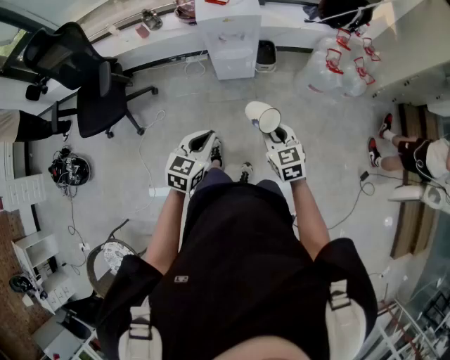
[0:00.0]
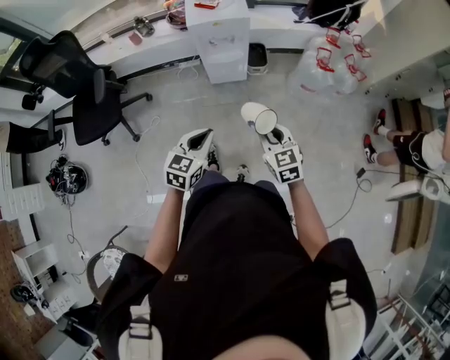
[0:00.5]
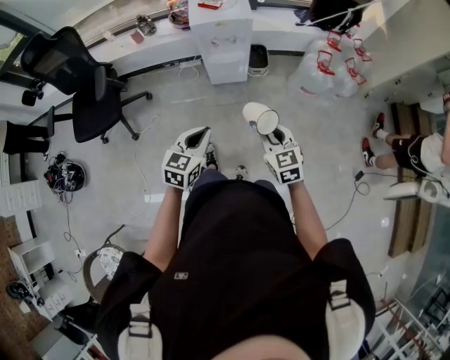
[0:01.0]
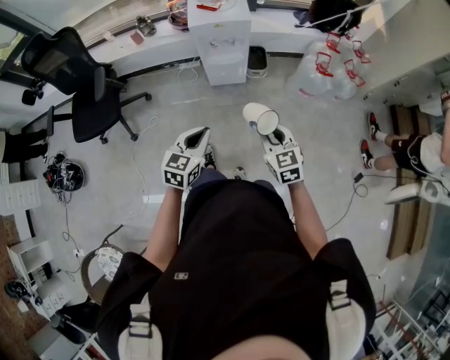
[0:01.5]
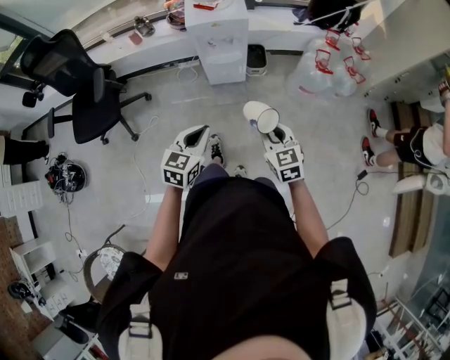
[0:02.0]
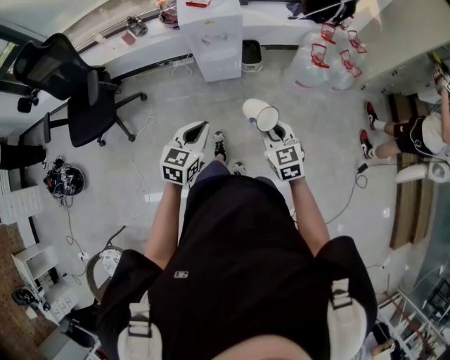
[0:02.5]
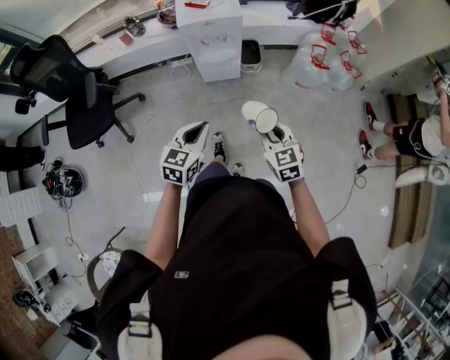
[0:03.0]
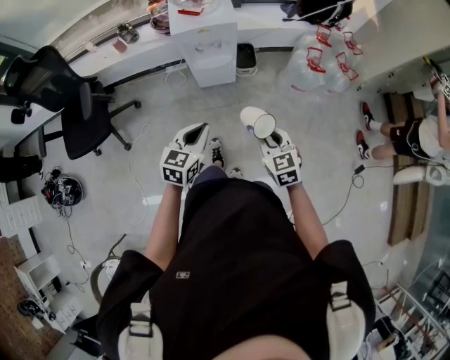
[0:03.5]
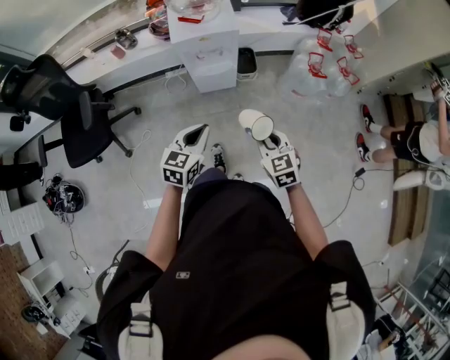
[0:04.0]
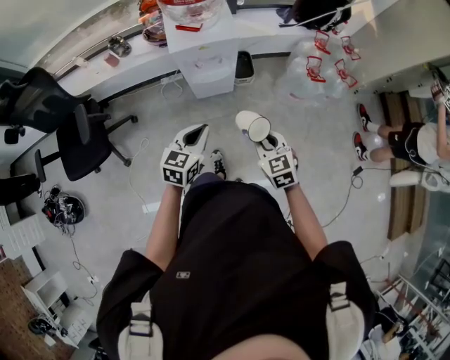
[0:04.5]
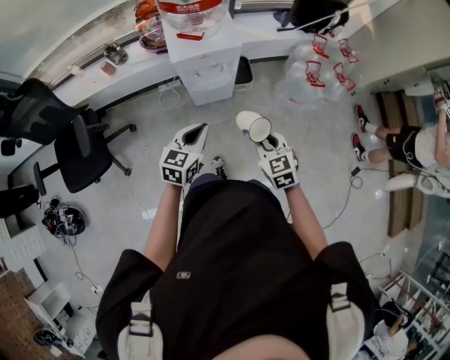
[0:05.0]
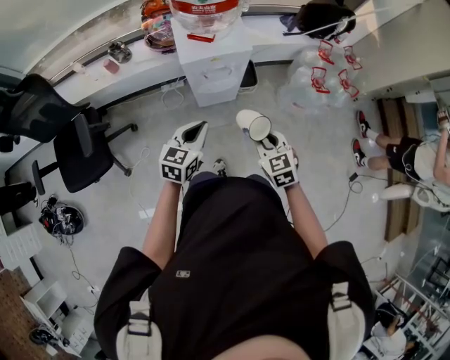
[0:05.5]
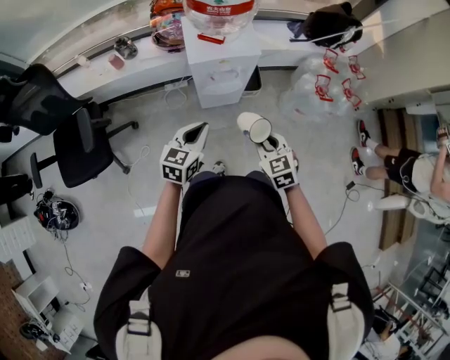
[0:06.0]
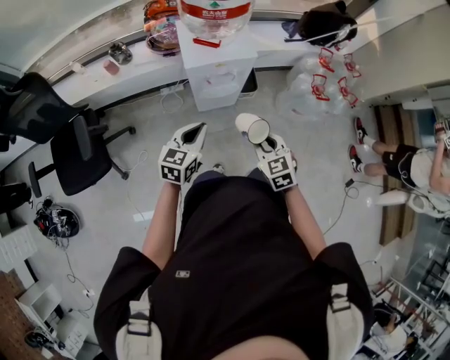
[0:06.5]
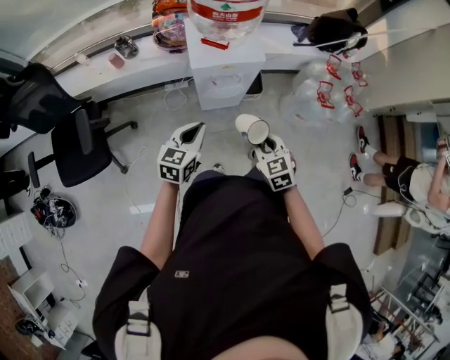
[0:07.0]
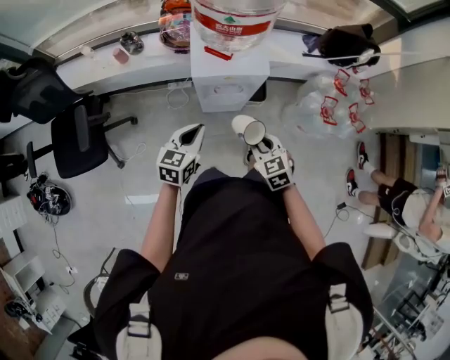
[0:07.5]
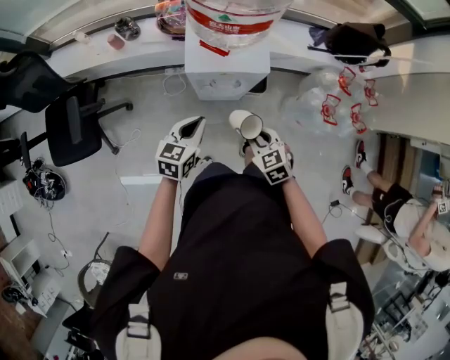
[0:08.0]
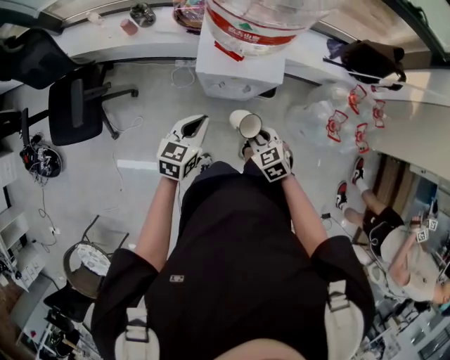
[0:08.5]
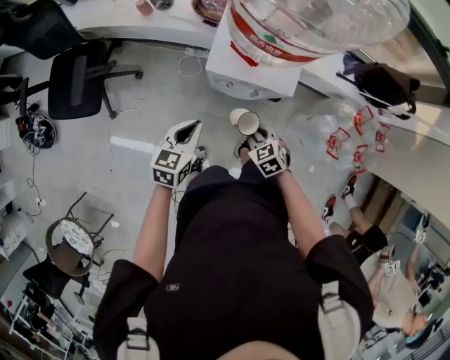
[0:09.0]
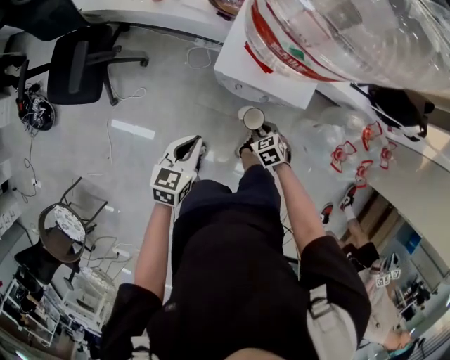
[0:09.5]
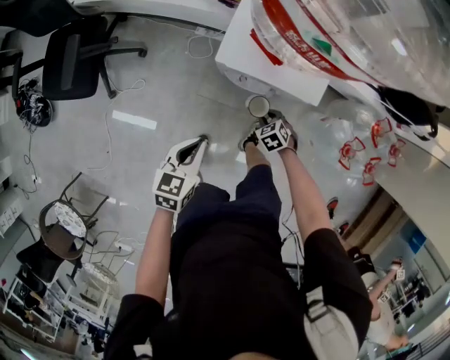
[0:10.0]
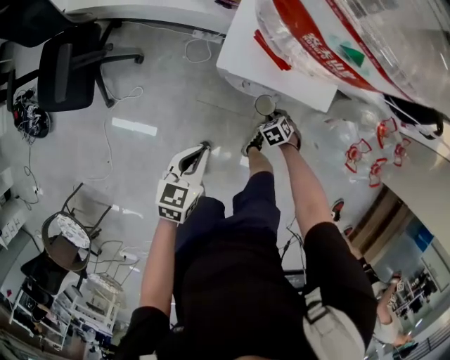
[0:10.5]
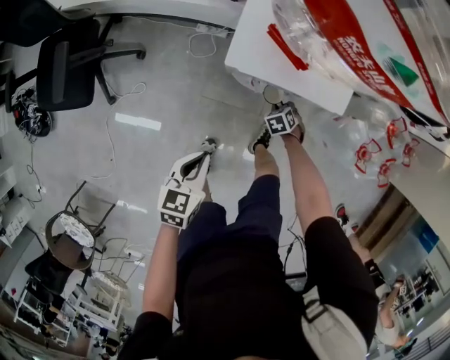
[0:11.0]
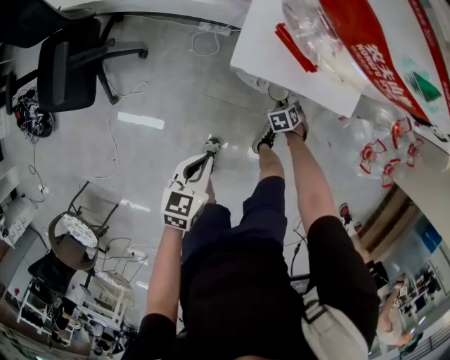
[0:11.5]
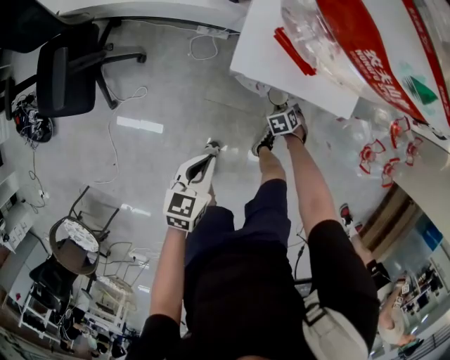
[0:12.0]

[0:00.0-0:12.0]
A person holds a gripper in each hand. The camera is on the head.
0.0 to 2.0 s: The grippers make only small movements.
2.0 to 4.0 s: Both grippers move forward, roughly 10 cm.
4.0 to 6.0 s: The grippers both shift forward and to the left by roughly 15 cm.
6.0 to 8.0 s: The right gripper moves forward and downward, about 15 cm; the left gripper goes about 10 cm forward.
8.0 to 10.0 s: The left gripper heads downward, covering some 10 cm, and turns by some 20 degrees. The right gripper goes about 30 cm downward, and rotates approximately 30 degrees.
10.0 to 12.0 s: The right gripper moves downward, roughly 10 cm, and swivels roughly 20 degrees. Meanwhile the left gripper travels downward by about 5 cm.

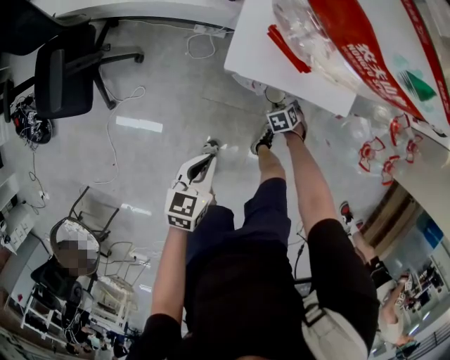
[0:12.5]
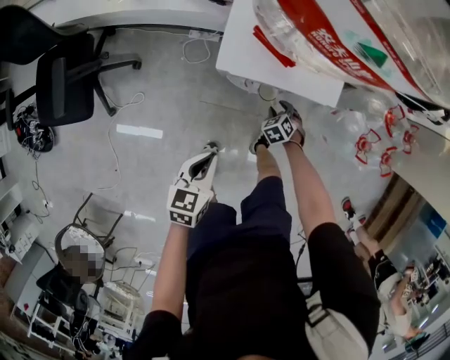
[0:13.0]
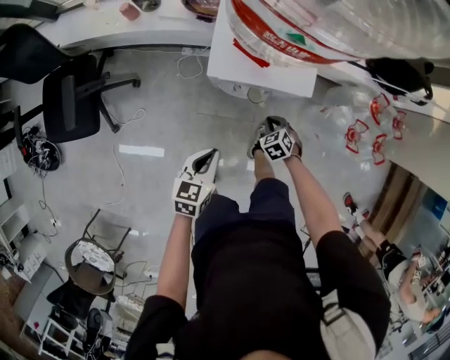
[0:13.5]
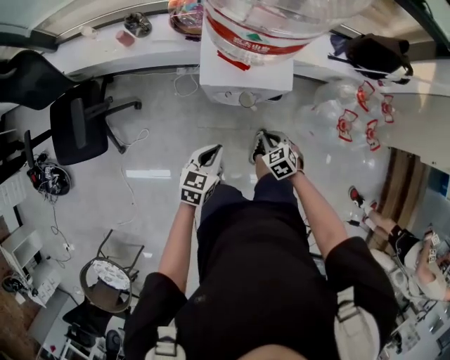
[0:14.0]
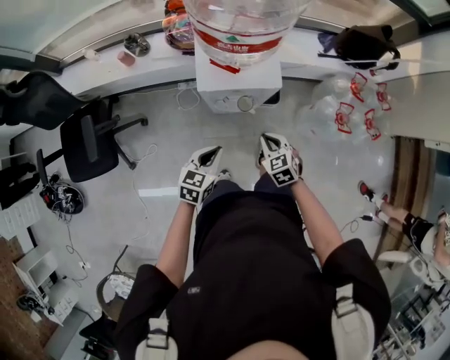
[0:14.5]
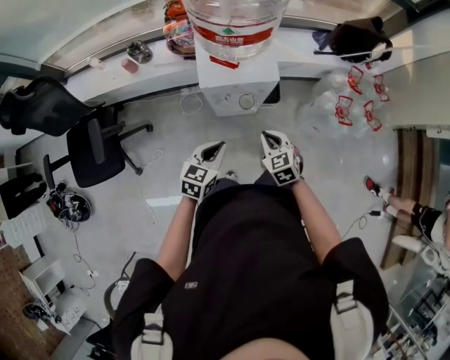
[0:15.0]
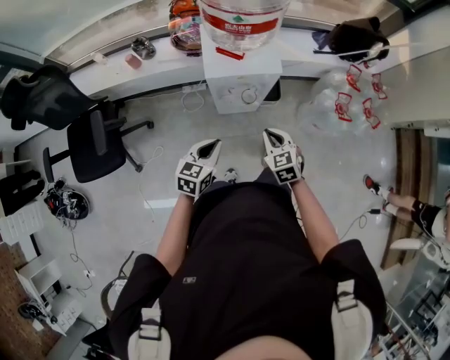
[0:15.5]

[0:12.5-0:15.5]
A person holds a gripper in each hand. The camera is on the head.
12.5 to 14.0 s: The right gripper goes roughly 25 cm upward, and closes. Meanwhile the left gripper heads upward, covering approximately 10 cm.
14.0 to 15.5 s: The left gripper shifts some 10 cm upward and backward. The right gripper moves upward and backward, some 15 cm, and changes its angle by about 20 degrees.

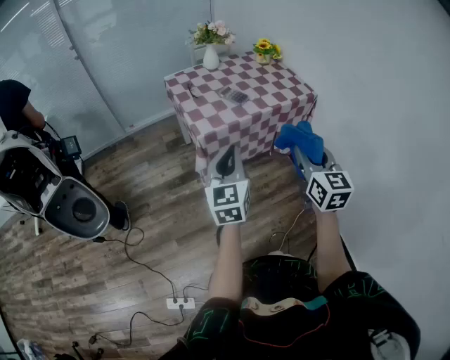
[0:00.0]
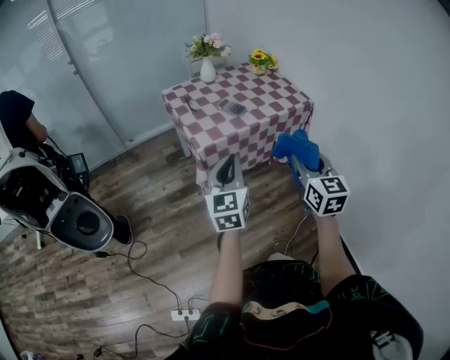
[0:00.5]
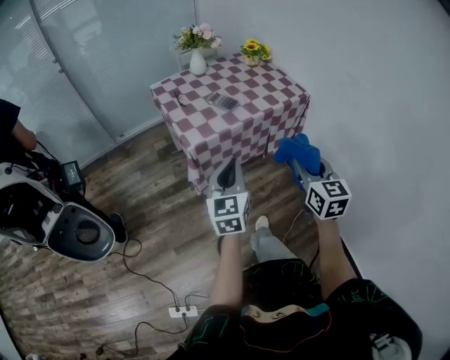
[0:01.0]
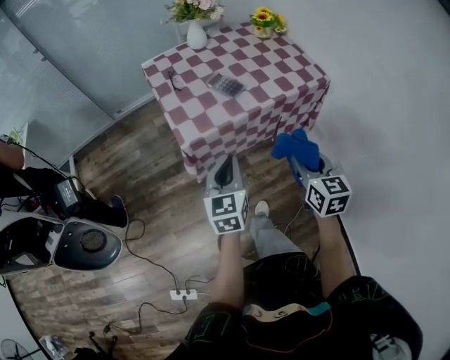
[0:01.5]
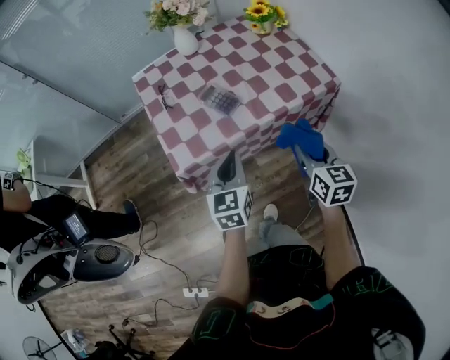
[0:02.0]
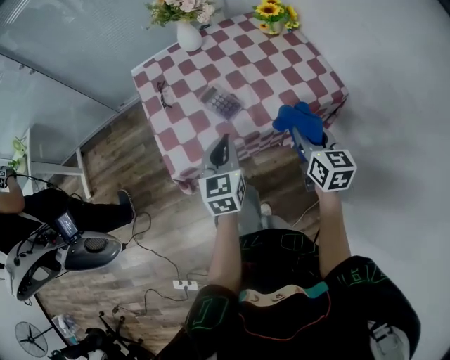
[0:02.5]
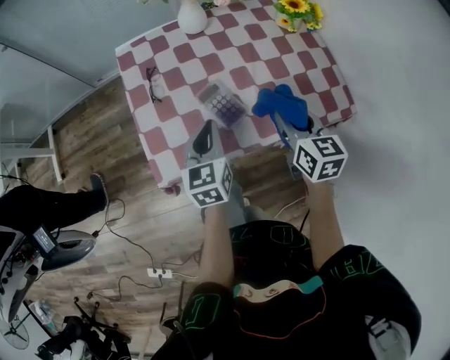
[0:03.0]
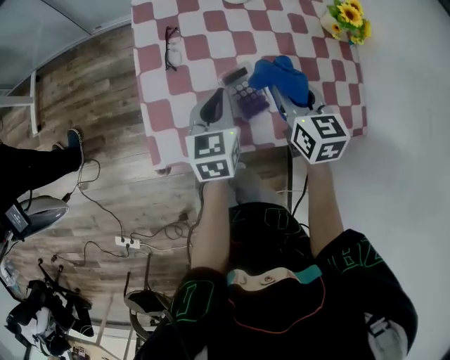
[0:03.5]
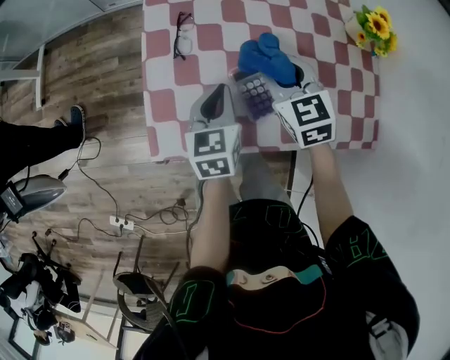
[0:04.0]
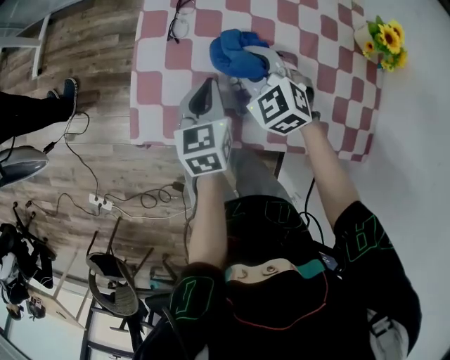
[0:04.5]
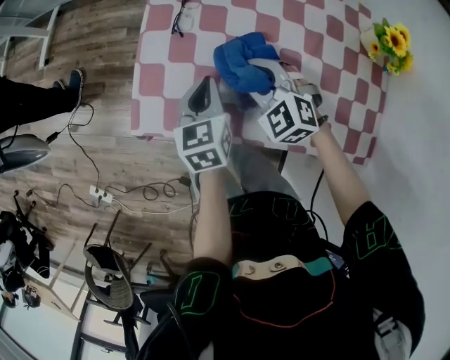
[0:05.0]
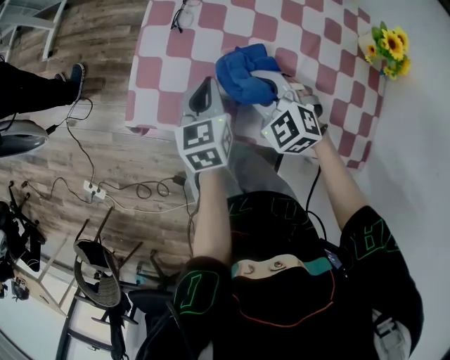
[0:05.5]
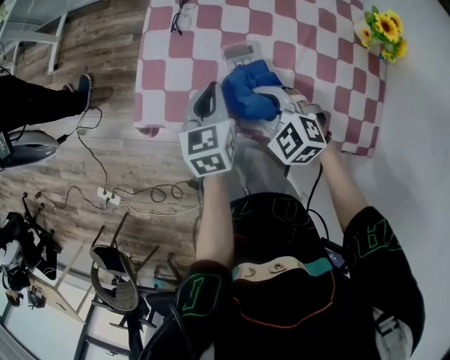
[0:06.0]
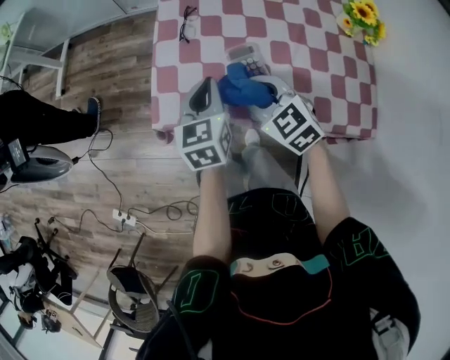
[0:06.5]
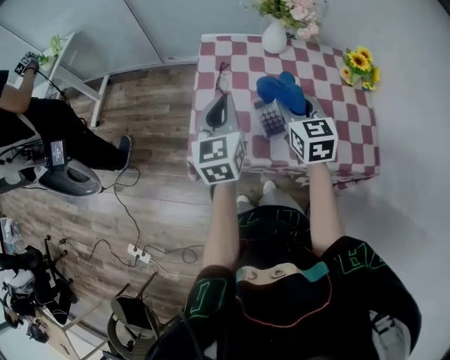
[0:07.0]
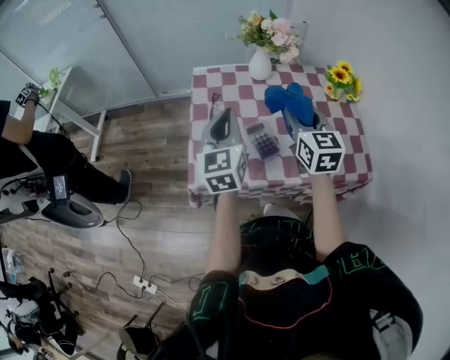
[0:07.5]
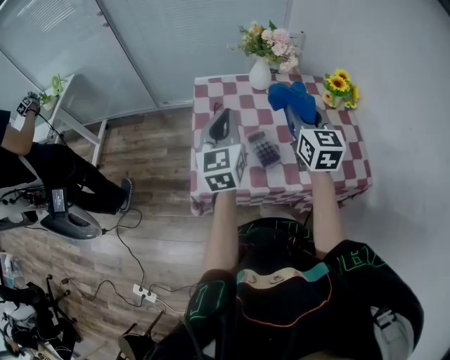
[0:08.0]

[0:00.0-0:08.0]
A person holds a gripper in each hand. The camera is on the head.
0.0 to 2.0 s: The left gripper heads forward, downward and to the right, covering about 30 cm. The right gripper is displaced forward and downward by about 30 cm, and swivels about 20 degrees.
2.0 to 4.0 s: The left gripper changes place by roughly 25 cm, and turns by approximately 30 degrees; the right gripper ends up about 40 cm from where it was, and changes its angle by some 50 degrees.
4.0 to 6.0 s: The left gripper moves roughly 5 cm; the right gripper moves about 15 cm, and swivels some 50 degrees.
6.0 to 8.0 s: The grippers both shift upward by roughly 25 cm. The left gripper swivels approximately 30 degrees. Meanwhile the right gripper points its fingers roughly 40 degrees further upward.

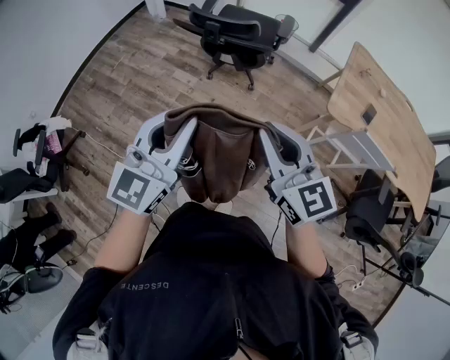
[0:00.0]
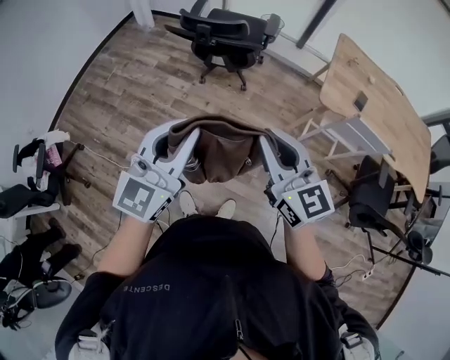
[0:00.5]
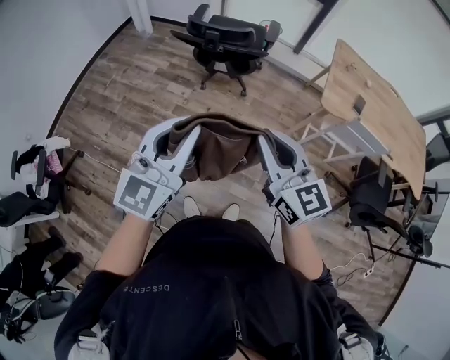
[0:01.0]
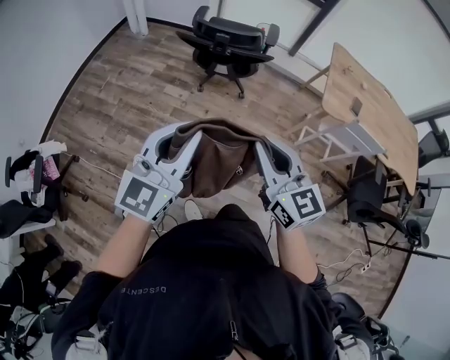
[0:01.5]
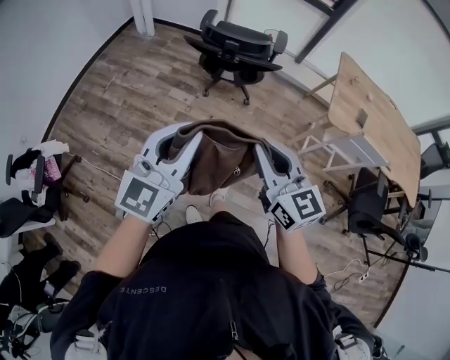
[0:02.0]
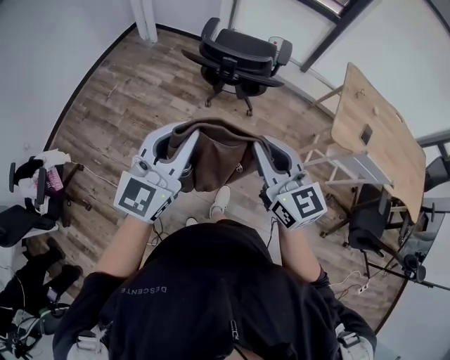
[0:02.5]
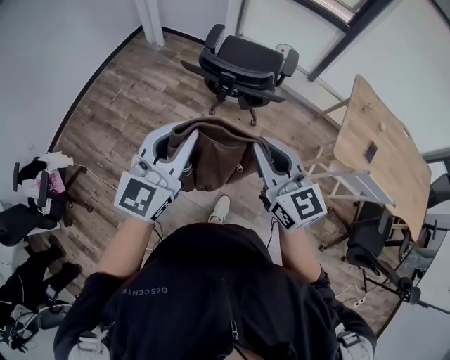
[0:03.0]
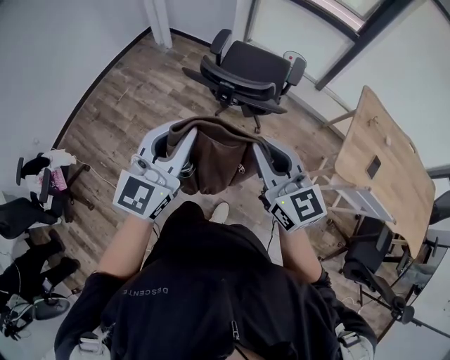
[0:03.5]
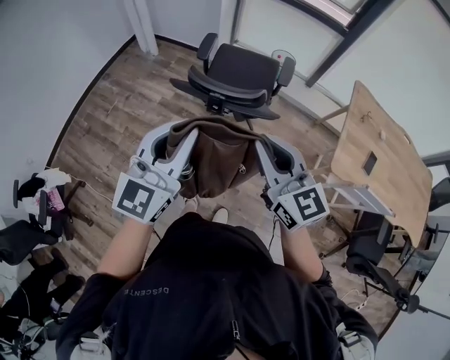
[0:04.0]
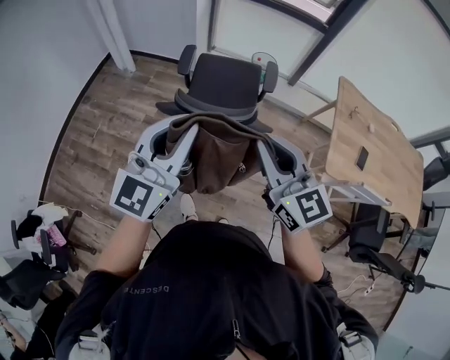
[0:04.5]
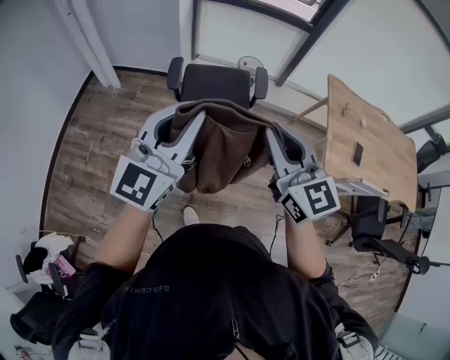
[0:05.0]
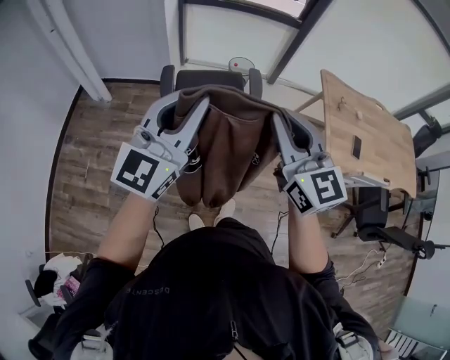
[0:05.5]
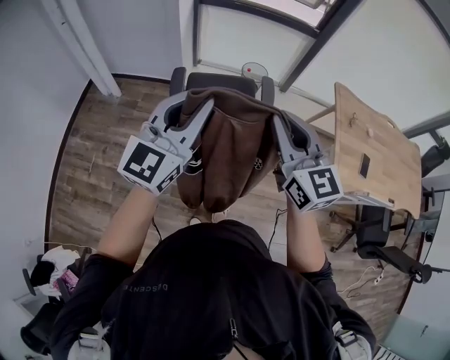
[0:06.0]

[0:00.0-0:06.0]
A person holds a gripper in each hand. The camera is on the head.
0.0 to 2.0 s: Both grippers travel together to the left, about 15 cm.
2.0 to 4.0 s: The two grippers go approximately 25 cm forward.
4.0 to 6.0 s: The grippers both shift forward by some 25 cm. The right gripper rotates some 20 degrees.
